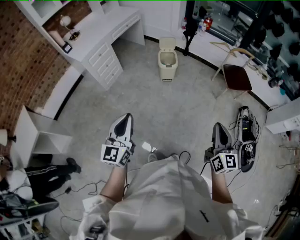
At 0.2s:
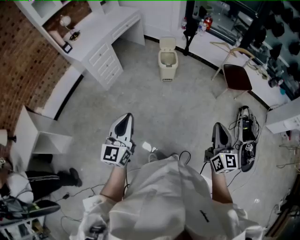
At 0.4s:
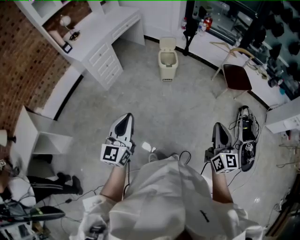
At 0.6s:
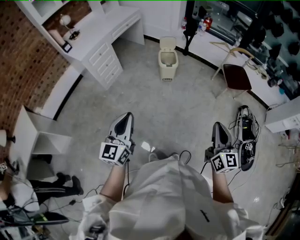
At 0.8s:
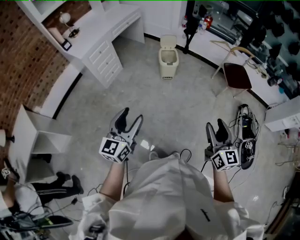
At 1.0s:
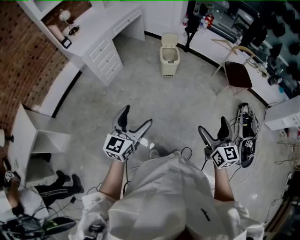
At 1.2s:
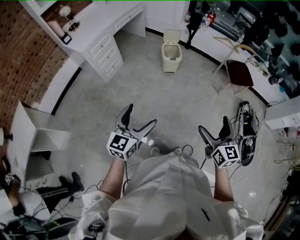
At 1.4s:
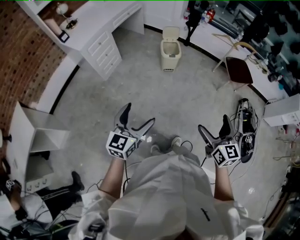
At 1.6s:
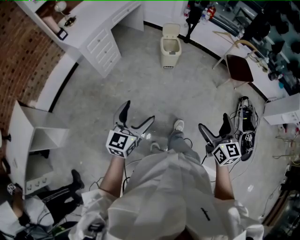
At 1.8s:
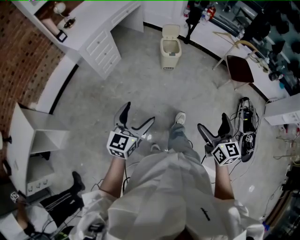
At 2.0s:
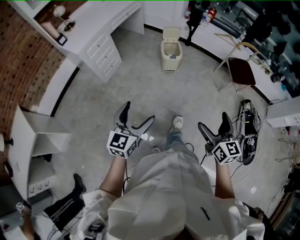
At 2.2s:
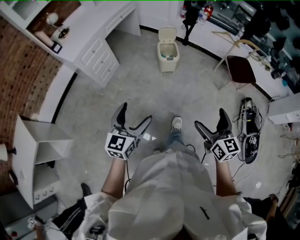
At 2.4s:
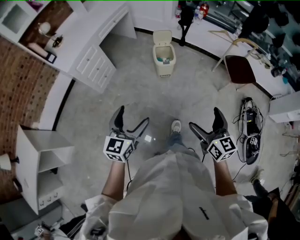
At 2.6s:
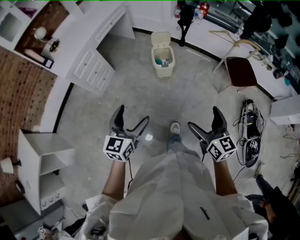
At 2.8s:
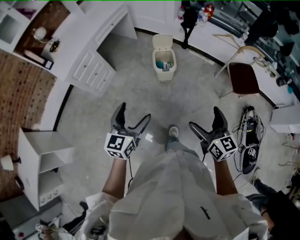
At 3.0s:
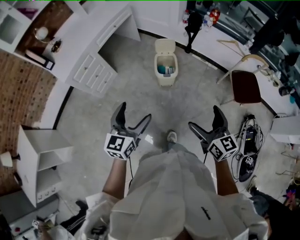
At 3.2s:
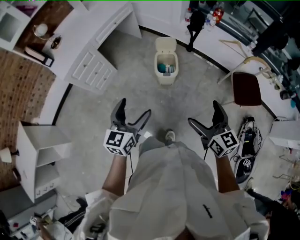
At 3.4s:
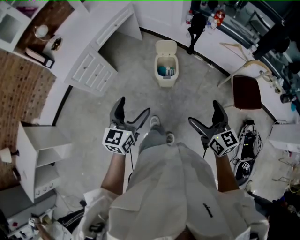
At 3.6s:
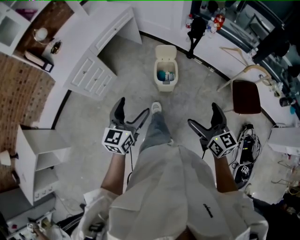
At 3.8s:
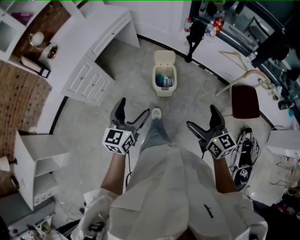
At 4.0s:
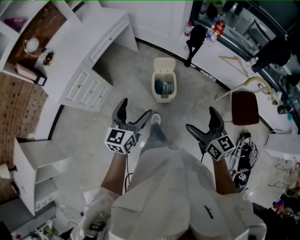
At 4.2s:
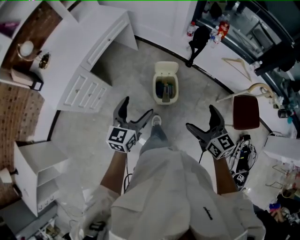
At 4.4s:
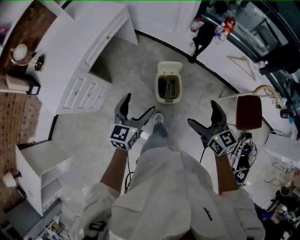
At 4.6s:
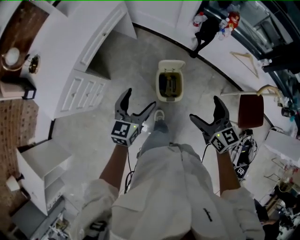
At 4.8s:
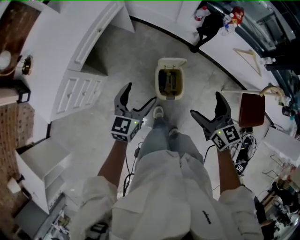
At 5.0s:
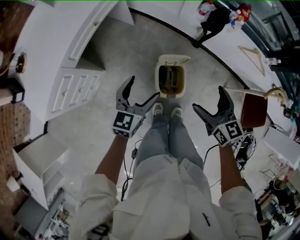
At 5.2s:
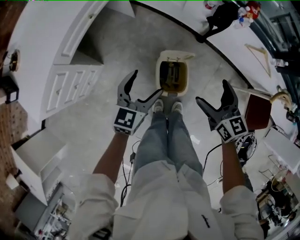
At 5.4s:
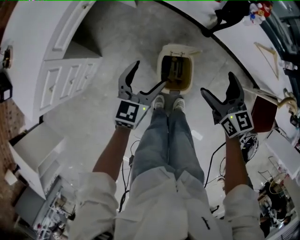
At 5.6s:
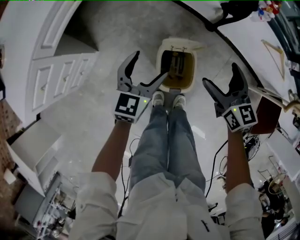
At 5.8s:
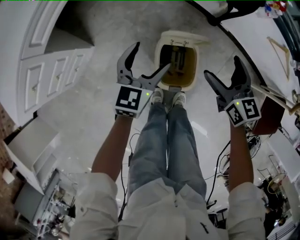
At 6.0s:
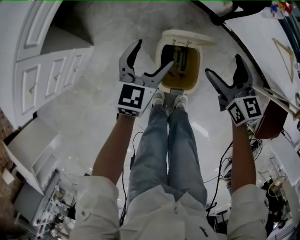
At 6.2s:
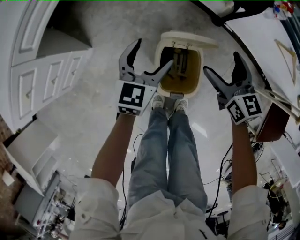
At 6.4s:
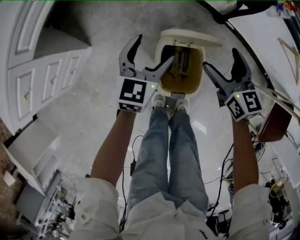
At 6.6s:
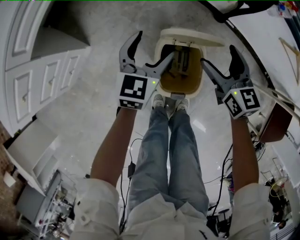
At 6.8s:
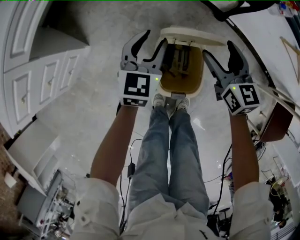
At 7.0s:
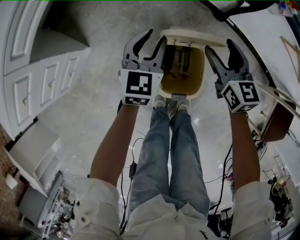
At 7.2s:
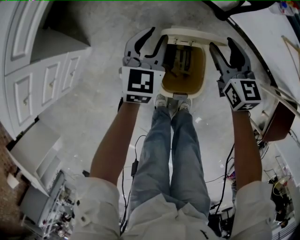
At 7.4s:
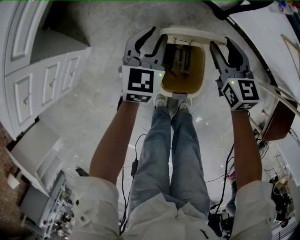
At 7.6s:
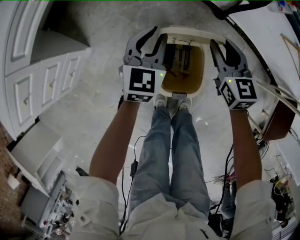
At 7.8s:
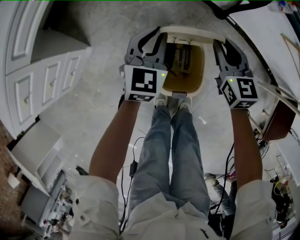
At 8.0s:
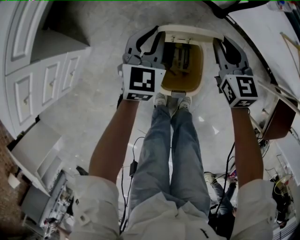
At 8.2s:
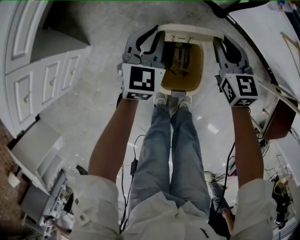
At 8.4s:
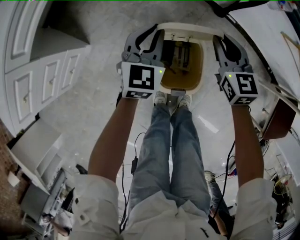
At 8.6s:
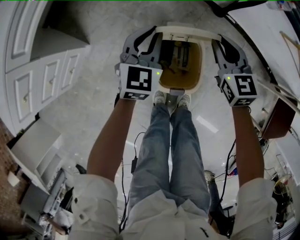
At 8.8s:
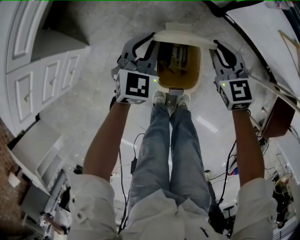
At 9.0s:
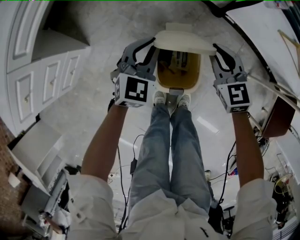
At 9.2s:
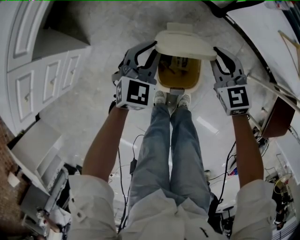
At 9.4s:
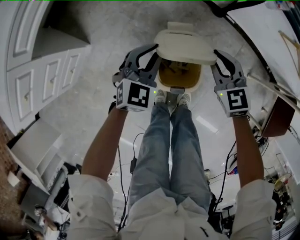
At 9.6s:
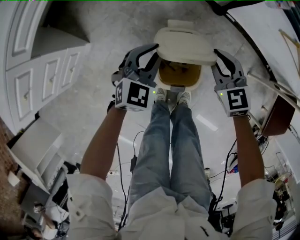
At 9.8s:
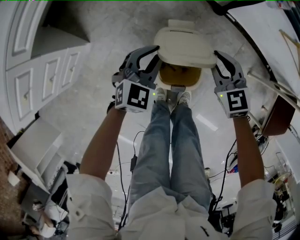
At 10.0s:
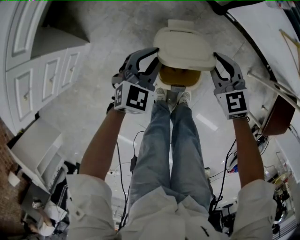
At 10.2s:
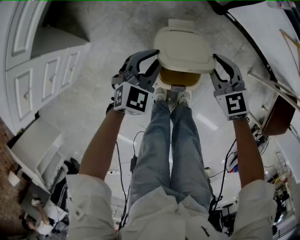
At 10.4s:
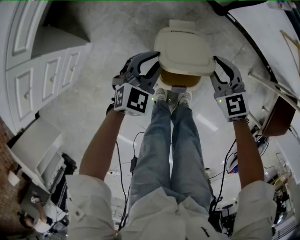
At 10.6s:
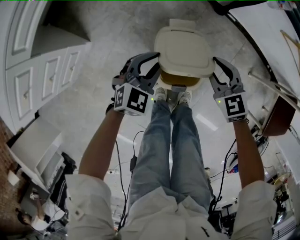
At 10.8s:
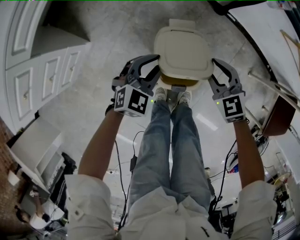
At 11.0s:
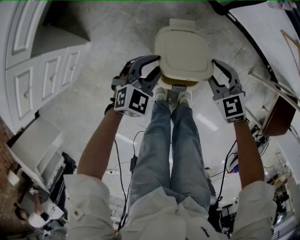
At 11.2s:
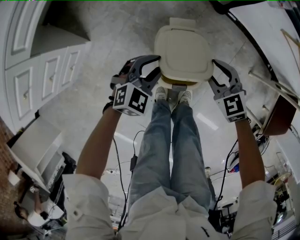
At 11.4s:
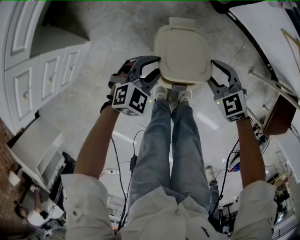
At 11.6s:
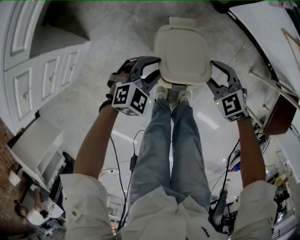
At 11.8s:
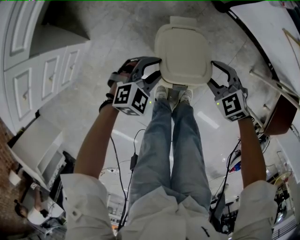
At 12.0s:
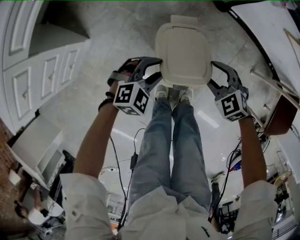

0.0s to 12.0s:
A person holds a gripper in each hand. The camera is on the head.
0.0s to 1.6s: The right gripper travels to the left by about 10 cm, and opens its fingers. Meanwhile the left gripper moves downward, some 5 cm, and opens up.
1.6s to 3.0s: Both grippers move forward, roughly 35 cm.
3.0s to 4.4s: The two grippers go approximately 35 cm forward.
4.4s to 6.0s: The two grippers go roughly 40 cm downward and forward.
6.0s to 7.6s: The grippers both shift downward and forward by roughly 10 cm. The left gripper closes up, while the right gripper closes its fingers.
7.6s to 9.0s: There are only small adjustments of the grippers.
9.0s to 10.4s: Both grippers travel together backward, roughly 5 cm.
10.4s to 12.0s: The left gripper moves backward and downward, approximately 10 cm, and rotates about 30 degrees. The right gripper moves downward and backward, roughly 10 cm, and turns by roughly 30 degrees.

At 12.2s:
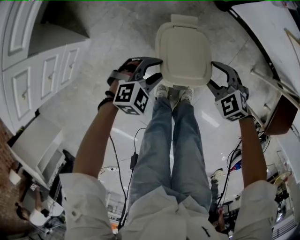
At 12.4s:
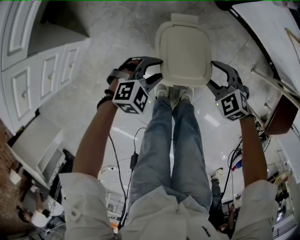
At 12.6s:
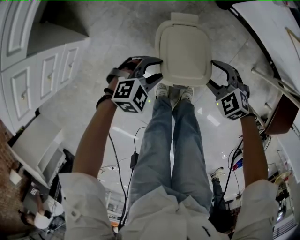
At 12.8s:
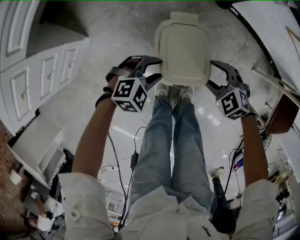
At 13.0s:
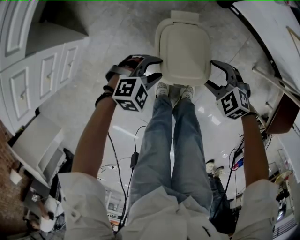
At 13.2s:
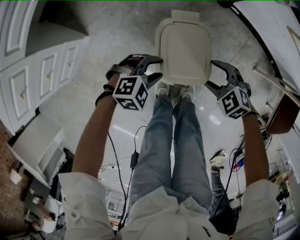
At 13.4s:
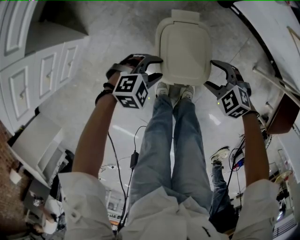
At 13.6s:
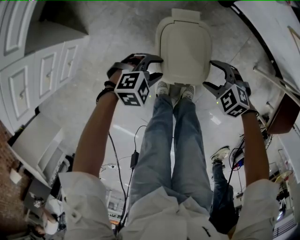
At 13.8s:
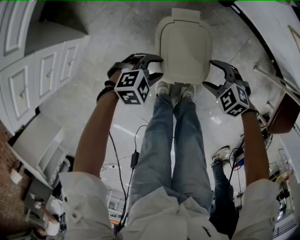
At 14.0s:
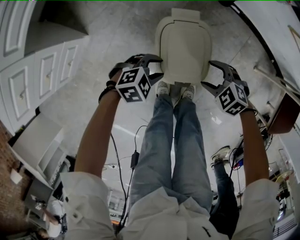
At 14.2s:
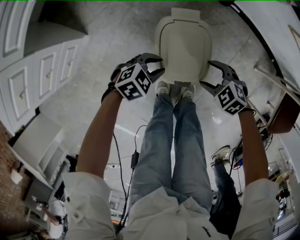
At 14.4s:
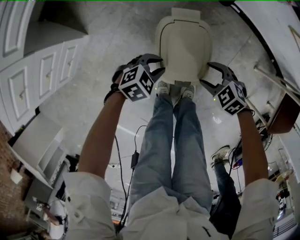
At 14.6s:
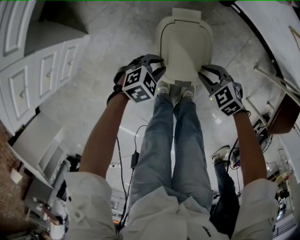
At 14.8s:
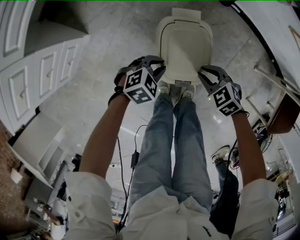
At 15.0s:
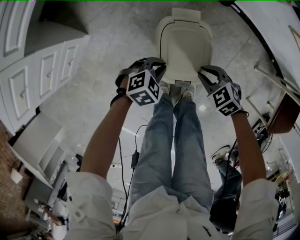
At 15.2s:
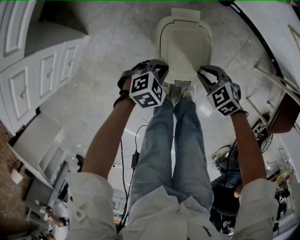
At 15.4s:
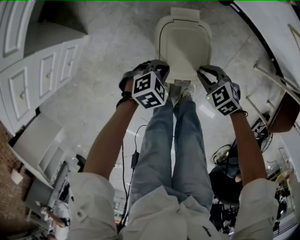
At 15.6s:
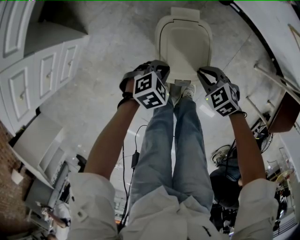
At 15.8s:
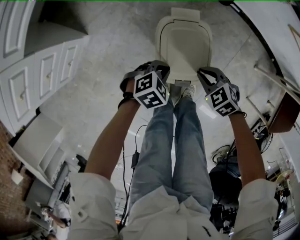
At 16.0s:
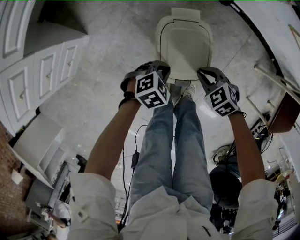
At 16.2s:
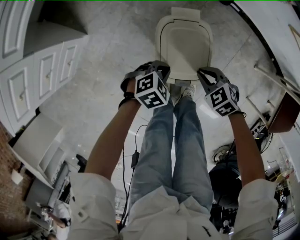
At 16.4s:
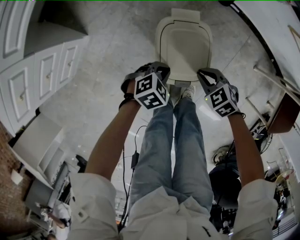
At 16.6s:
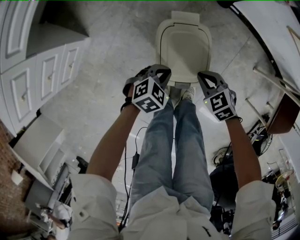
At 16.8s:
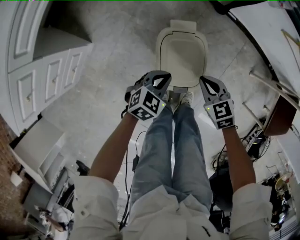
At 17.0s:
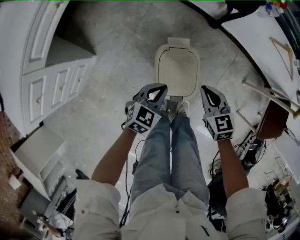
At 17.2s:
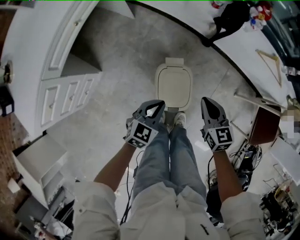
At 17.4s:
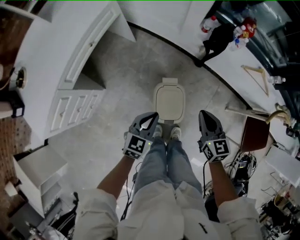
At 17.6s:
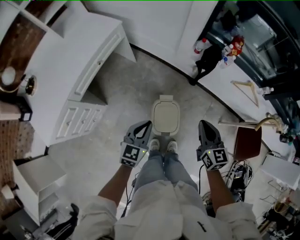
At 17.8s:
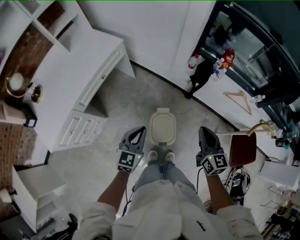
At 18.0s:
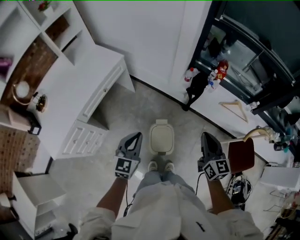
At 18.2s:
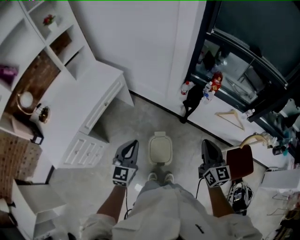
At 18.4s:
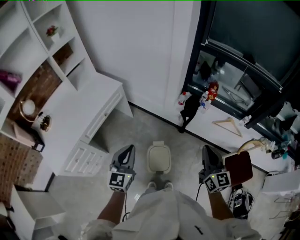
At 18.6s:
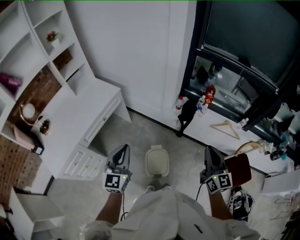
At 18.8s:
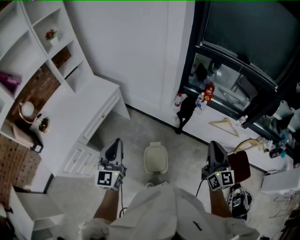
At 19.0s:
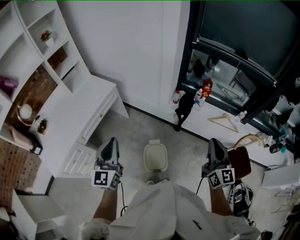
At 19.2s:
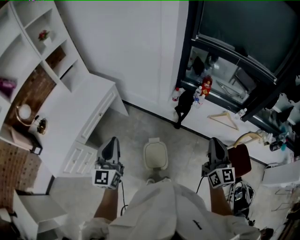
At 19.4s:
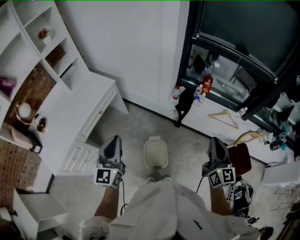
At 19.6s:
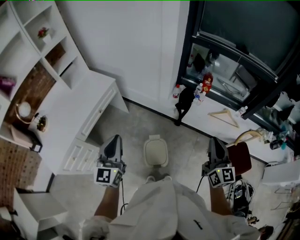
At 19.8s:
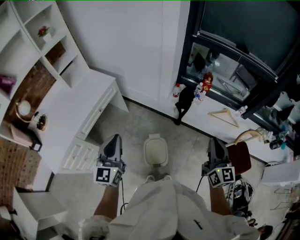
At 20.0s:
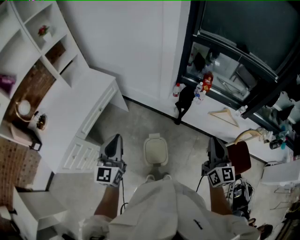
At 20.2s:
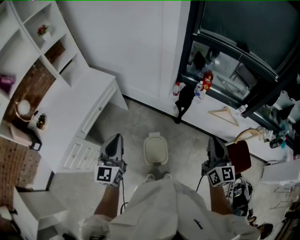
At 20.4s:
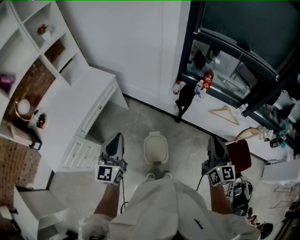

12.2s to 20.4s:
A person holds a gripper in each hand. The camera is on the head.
12.2s to 13.8s: The right gripper changes place by approximately 5 cm.
13.8s to 15.4s: The left gripper closes up. The right gripper closes.
15.4s to 17.2s: Both grippers travel together upward, about 25 cm. The right gripper turns by some 50 degrees; the left gripper turns by about 40 degrees.
17.2s to 18.8s: Both grippers move upward, approximately 50 cm. The left gripper angles its fingers upward, by some 40 degrees. The right gripper angles its fingers upward, by some 40 degrees.
18.8s to 20.4s: The grippers move only a little.

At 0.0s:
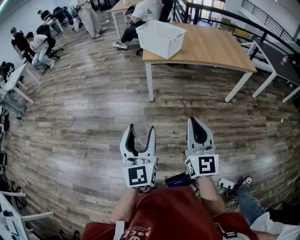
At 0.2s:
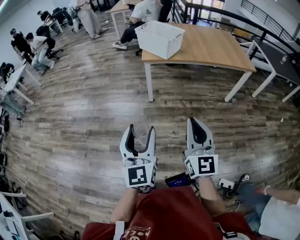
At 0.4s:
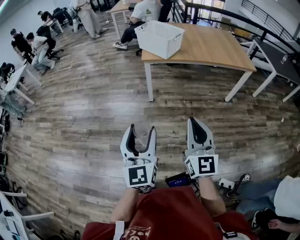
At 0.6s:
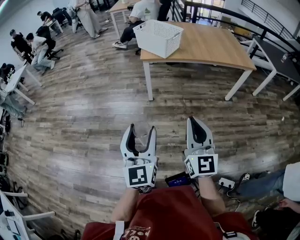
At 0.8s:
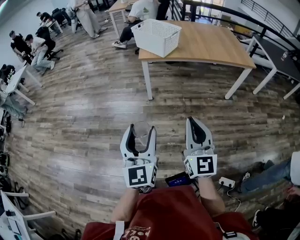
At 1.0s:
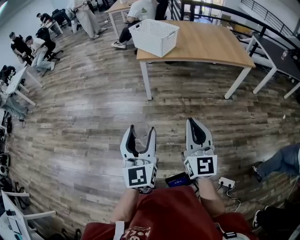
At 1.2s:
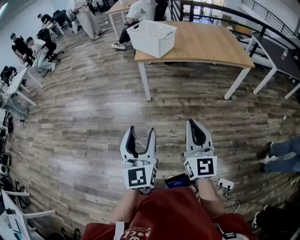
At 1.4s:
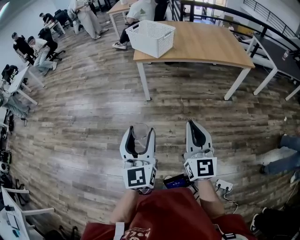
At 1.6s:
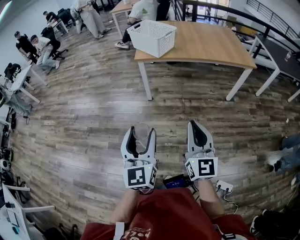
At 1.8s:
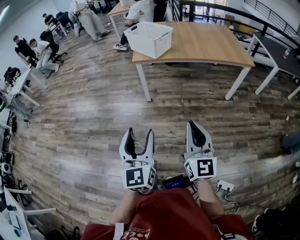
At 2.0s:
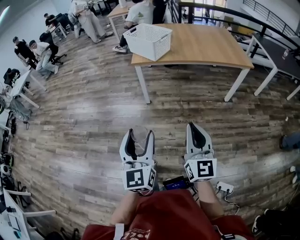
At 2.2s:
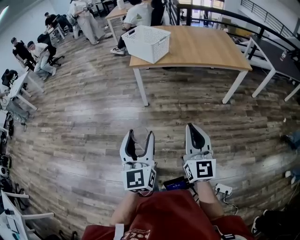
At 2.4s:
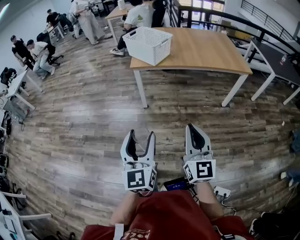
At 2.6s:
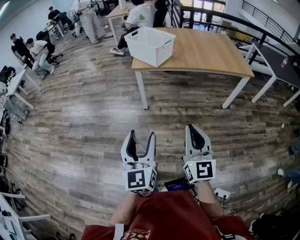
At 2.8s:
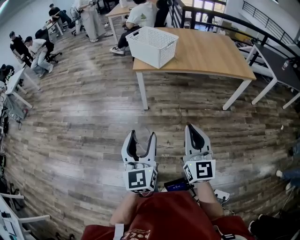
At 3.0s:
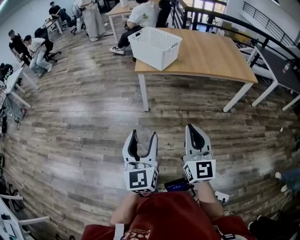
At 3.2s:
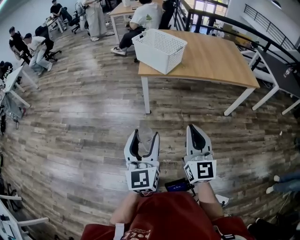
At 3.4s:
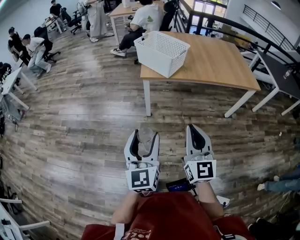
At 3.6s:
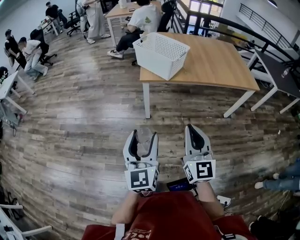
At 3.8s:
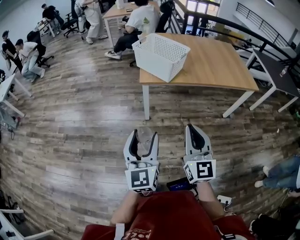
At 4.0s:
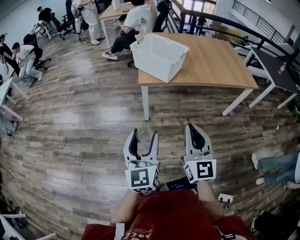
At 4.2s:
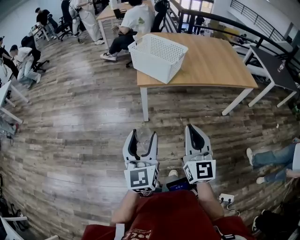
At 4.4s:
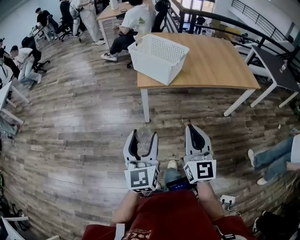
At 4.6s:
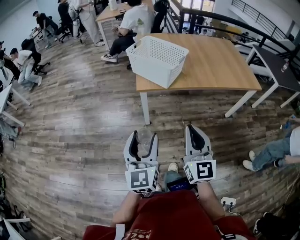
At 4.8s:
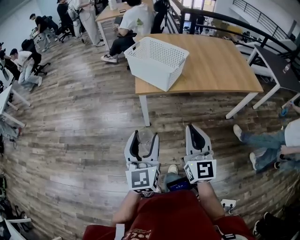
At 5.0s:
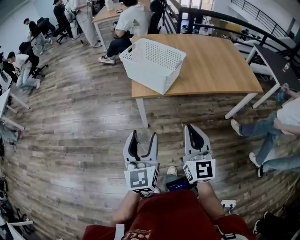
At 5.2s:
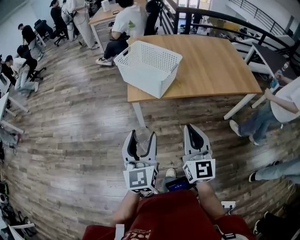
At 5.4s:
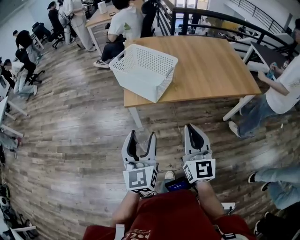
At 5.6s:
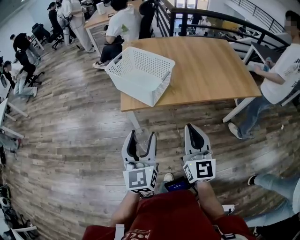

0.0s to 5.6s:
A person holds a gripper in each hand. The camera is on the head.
0.0s to 1.4s: Both grippers move to the right, roughly 10 cm.
1.4s to 2.8s: The grippers both shift forward by about 10 cm.
2.8s to 4.2s: The grippers both shift forward and to the left by approximately 15 cm.
4.2s to 5.6s: The grippers both shift forward and to the right by some 20 cm.
